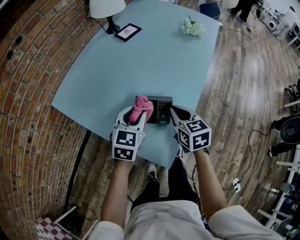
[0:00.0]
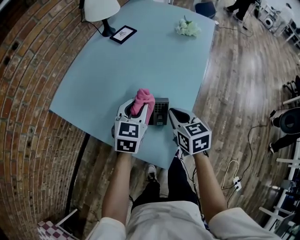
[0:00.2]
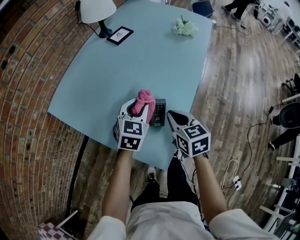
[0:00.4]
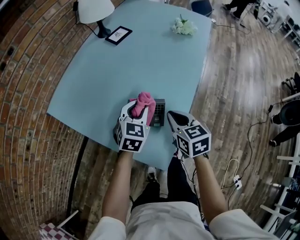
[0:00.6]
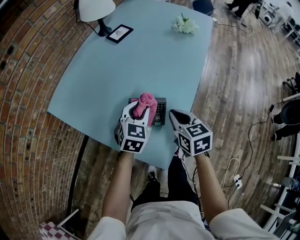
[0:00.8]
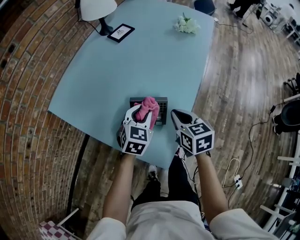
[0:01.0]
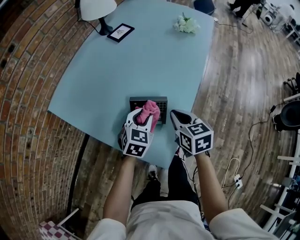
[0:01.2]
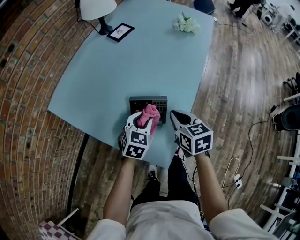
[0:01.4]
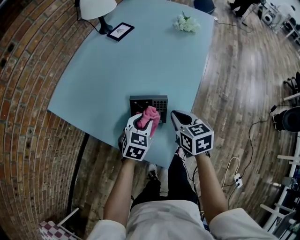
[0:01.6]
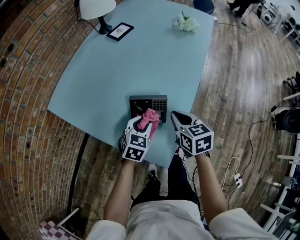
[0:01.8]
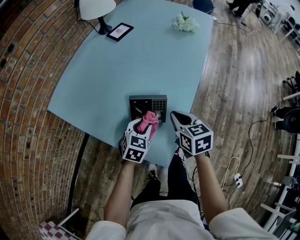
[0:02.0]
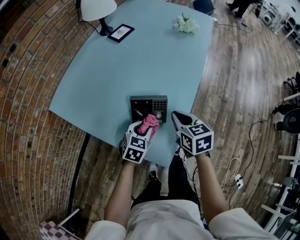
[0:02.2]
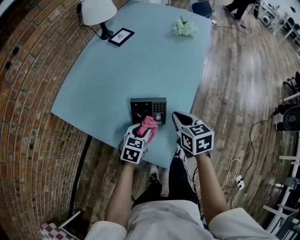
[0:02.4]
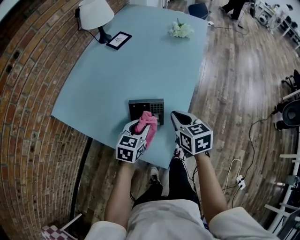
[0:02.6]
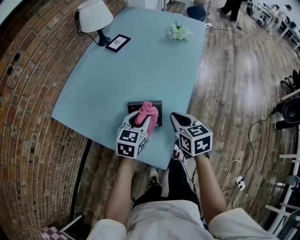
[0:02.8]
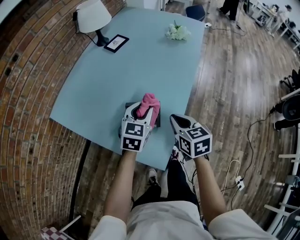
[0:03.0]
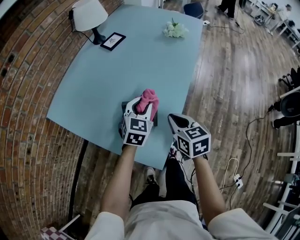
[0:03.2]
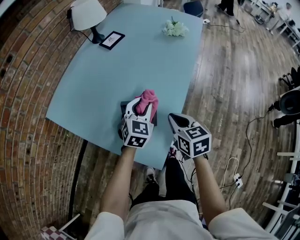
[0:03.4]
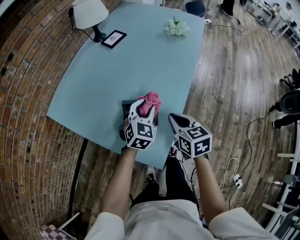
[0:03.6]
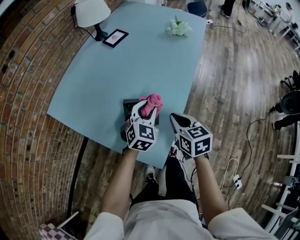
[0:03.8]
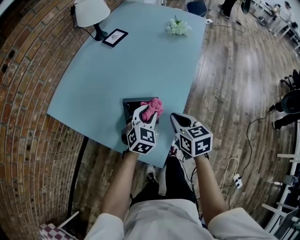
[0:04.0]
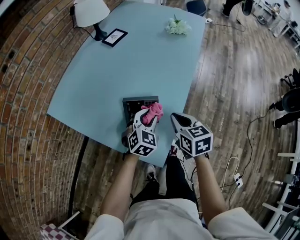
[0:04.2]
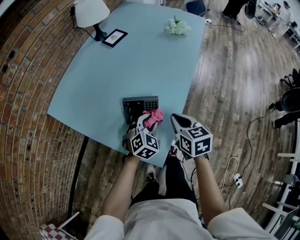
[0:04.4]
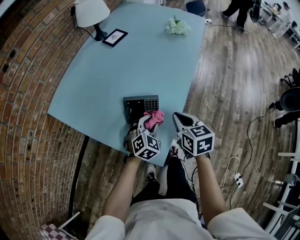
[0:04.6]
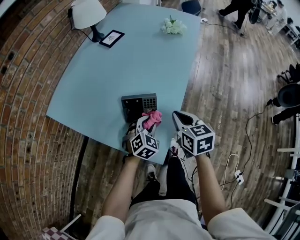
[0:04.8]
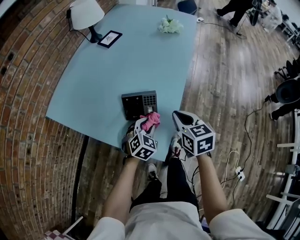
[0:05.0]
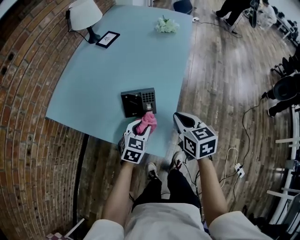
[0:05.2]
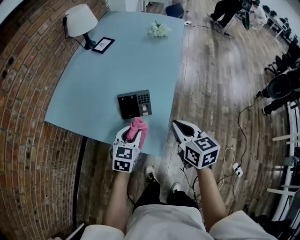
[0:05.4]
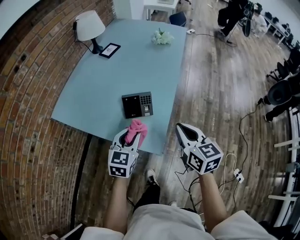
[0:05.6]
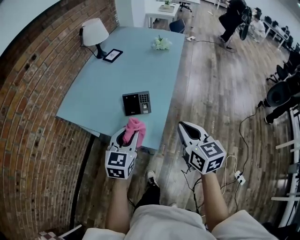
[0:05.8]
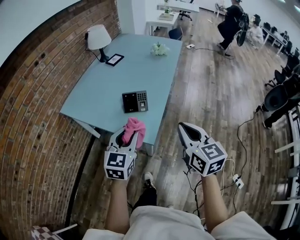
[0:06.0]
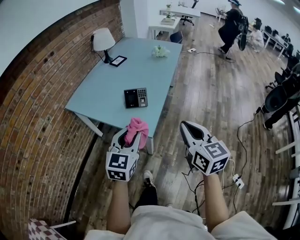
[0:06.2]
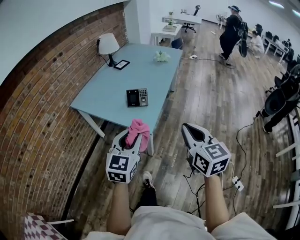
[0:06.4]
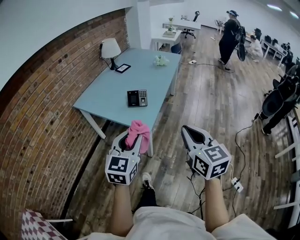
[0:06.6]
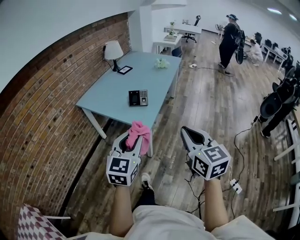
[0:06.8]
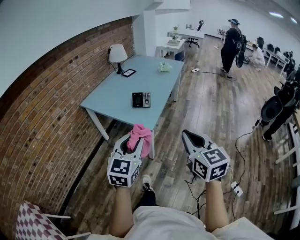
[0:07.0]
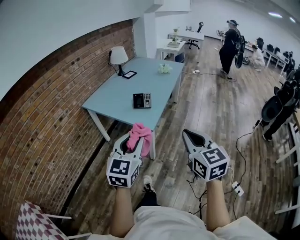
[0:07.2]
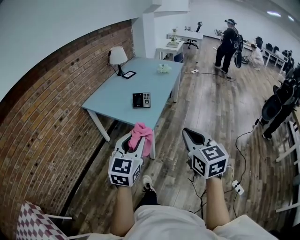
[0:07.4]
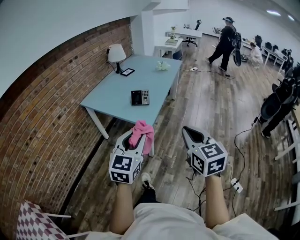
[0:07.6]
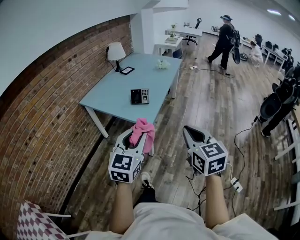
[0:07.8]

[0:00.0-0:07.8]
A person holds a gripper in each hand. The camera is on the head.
0:00.0 to 0:01.6: The left gripper moves downward, approximately 10 cm.
0:01.6 to 0:03.2: The left gripper travels upward and forward by approximately 10 cm.
0:03.2 to 0:04.6: The left gripper goes about 10 cm downward and backward, and changes its angle by roughly 20 degrees.
0:04.6 to 0:06.2: Both grippers move backward and upward, roughly 40 cm. The right gripper rotates about 30 degrees, while the left gripper turns by roughly 40 degrees.
0:06.2 to 0:07.8: Both grippers move backward, some 20 cm.

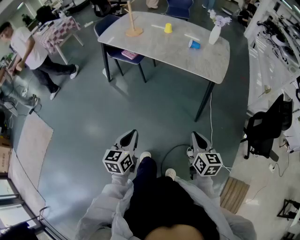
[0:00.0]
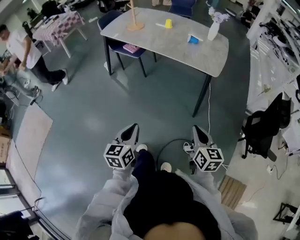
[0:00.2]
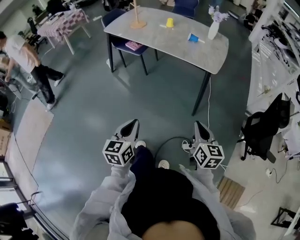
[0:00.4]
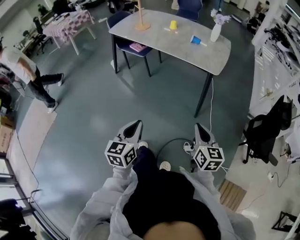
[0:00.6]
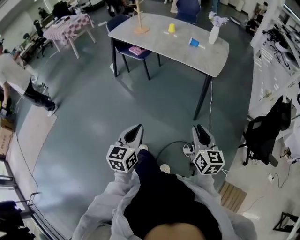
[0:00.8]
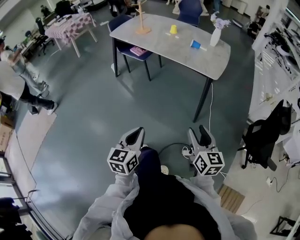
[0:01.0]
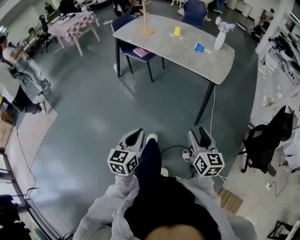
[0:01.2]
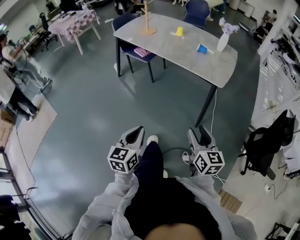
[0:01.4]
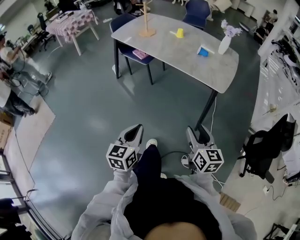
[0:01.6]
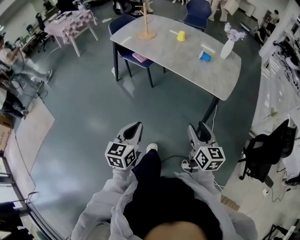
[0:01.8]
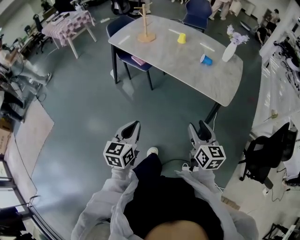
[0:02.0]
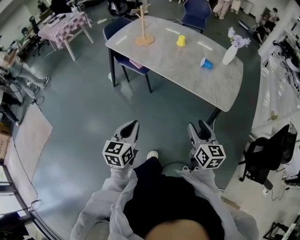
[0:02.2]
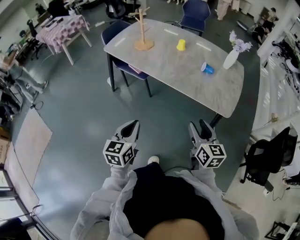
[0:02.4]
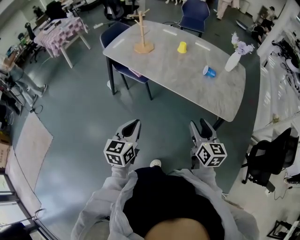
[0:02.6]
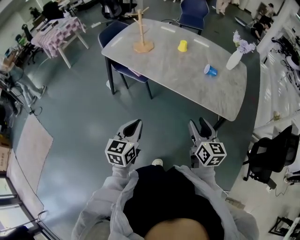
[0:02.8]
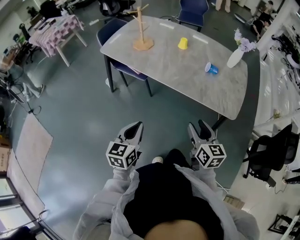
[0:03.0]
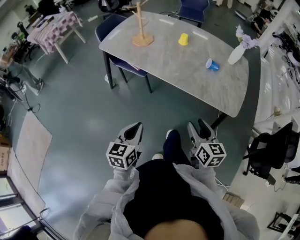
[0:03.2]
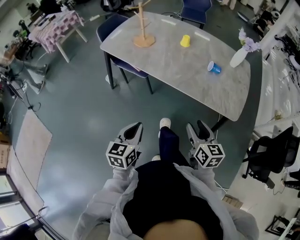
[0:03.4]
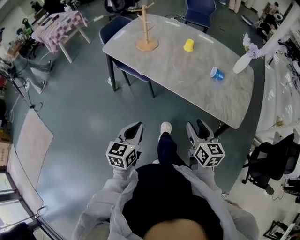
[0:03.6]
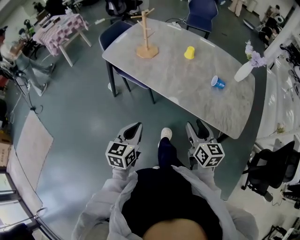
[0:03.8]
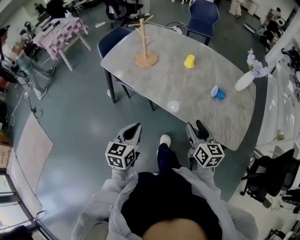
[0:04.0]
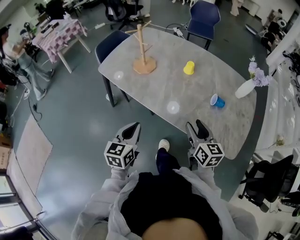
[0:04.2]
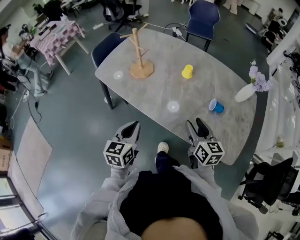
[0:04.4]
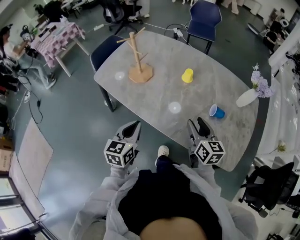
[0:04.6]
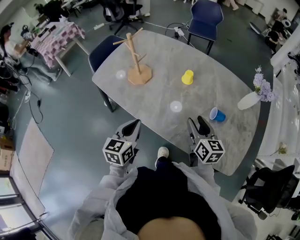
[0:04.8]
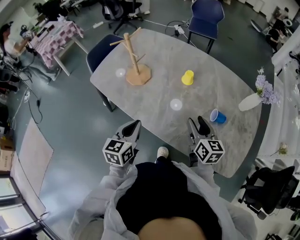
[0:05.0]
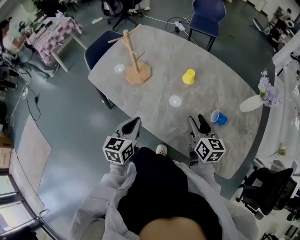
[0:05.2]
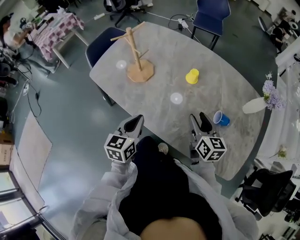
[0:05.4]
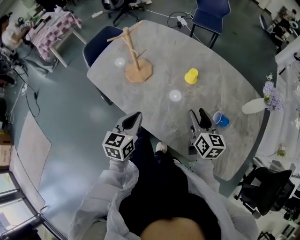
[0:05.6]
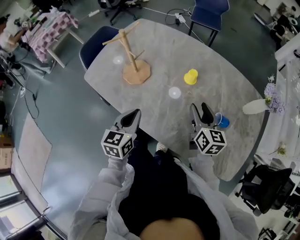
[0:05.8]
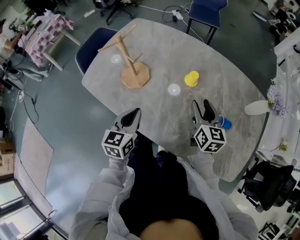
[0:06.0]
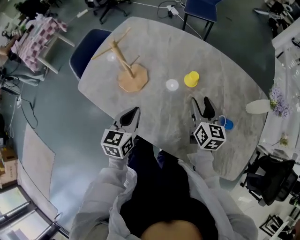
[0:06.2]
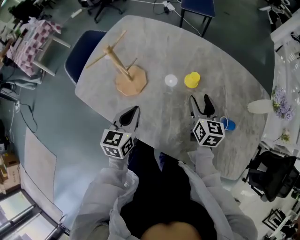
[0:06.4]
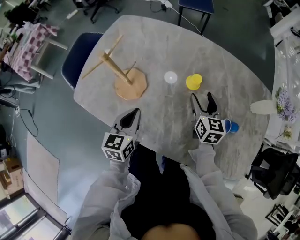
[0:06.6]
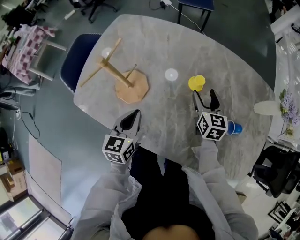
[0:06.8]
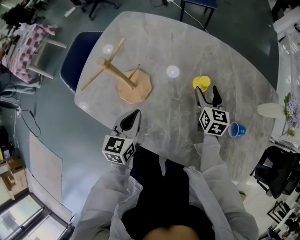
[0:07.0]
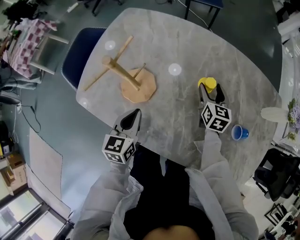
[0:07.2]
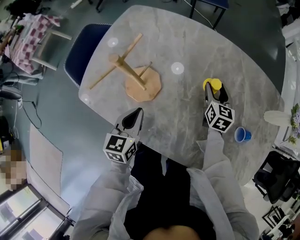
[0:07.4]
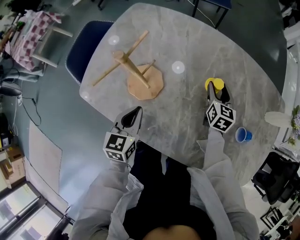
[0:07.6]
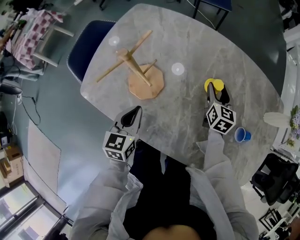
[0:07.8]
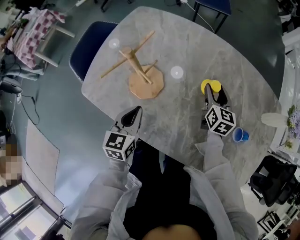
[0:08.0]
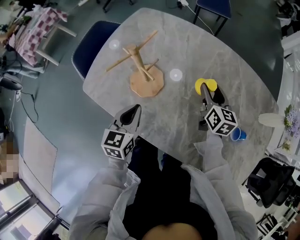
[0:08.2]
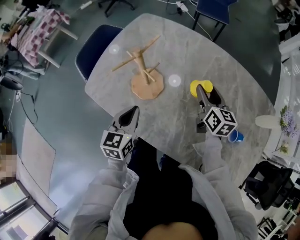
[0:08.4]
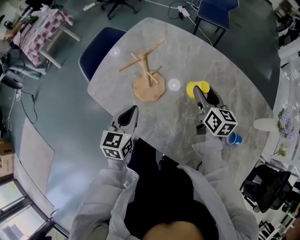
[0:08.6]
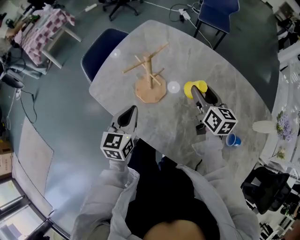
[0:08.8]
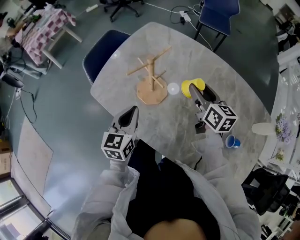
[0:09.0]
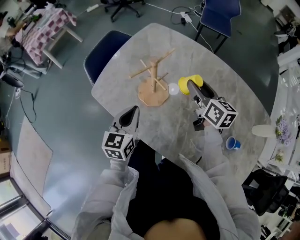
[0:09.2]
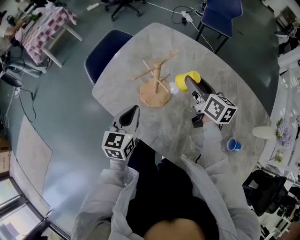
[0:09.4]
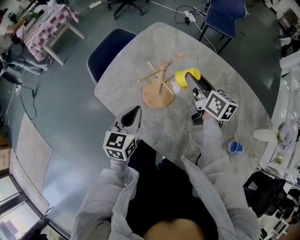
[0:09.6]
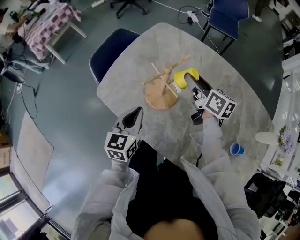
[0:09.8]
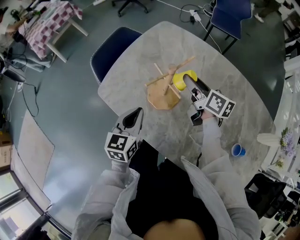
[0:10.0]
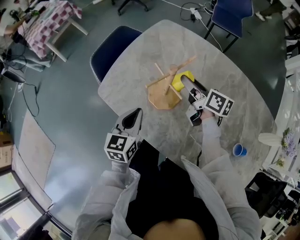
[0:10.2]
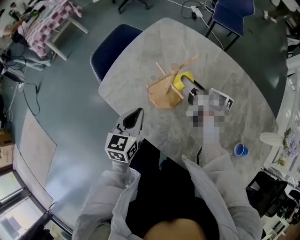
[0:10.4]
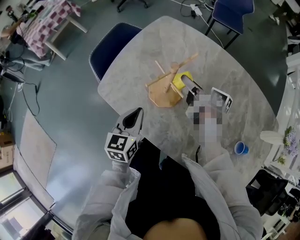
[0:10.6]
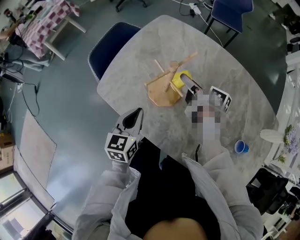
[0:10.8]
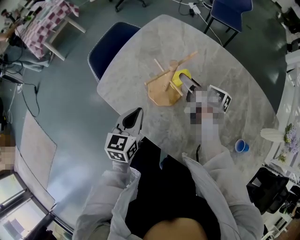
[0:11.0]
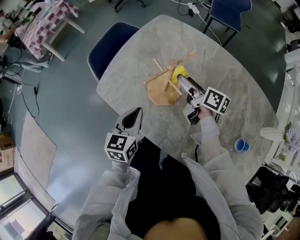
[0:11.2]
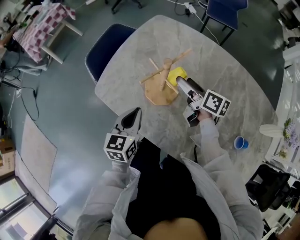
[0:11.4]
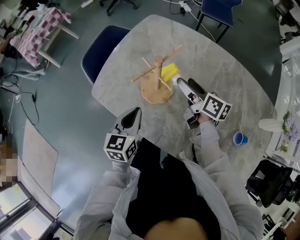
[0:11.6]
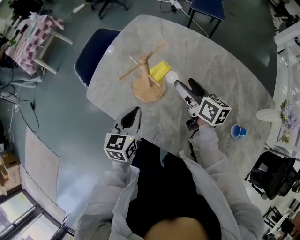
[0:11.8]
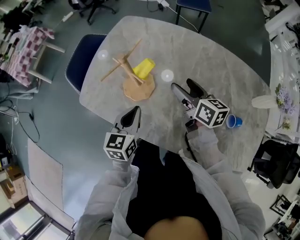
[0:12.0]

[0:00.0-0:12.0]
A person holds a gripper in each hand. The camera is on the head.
0:00.0 to 0:01.6: The right gripper travels backward and back again, approximately 10 cm each way, and opens up, while the left gripper heads to the right, covering roughly 5 cm, and moves some 10 cm backward and comes back.
0:01.6 to 0:03.0: The grippers both shift forward by approximately 25 cm.
0:03.0 to 0:04.4: Both grippers travel together forward, approximately 25 cm.
0:04.4 to 0:06.0: The two grippers go approximately 20 cm forward.
0:06.0 to 0:07.6: The left gripper travels forward, to the left and downward by about 15 cm, while the right gripper moves forward and downward, about 20 cm.
0:07.6 to 0:09.0: The left gripper moves upward, some 10 cm, while the right gripper moves upward and to the left, approximately 20 cm, and turns by approximately 30 degrees.
0:09.0 to 0:10.4: The right gripper is displaced to the left and forward by roughly 10 cm, and changes its angle by some 30 degrees, while the left gripper shifts by roughly 5 cm.
0:10.4 to 0:12.0: The left gripper heads to the right, covering about 10 cm. The right gripper is displaced backward and to the right by approximately 15 cm, and rotates approximately 20 degrees.

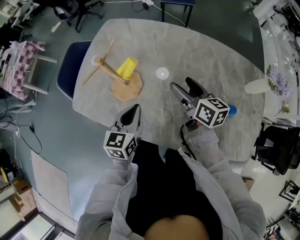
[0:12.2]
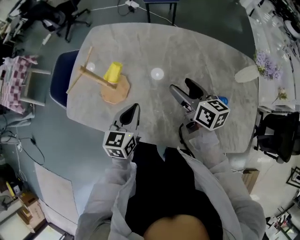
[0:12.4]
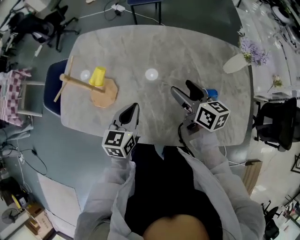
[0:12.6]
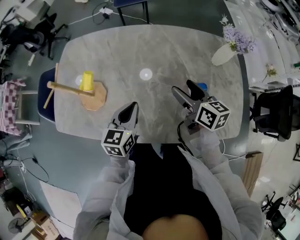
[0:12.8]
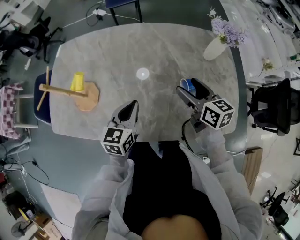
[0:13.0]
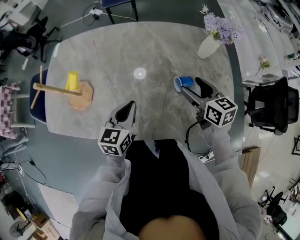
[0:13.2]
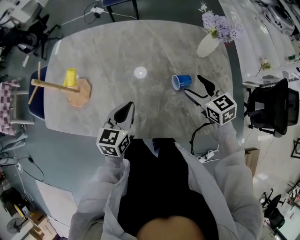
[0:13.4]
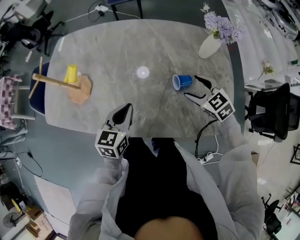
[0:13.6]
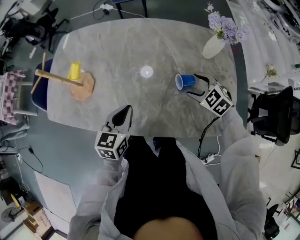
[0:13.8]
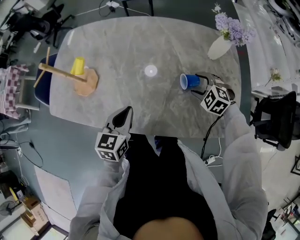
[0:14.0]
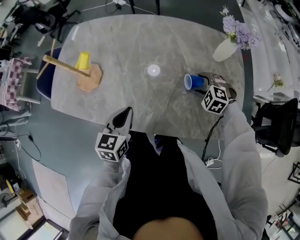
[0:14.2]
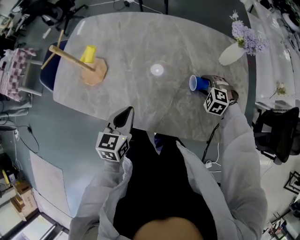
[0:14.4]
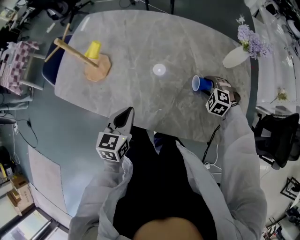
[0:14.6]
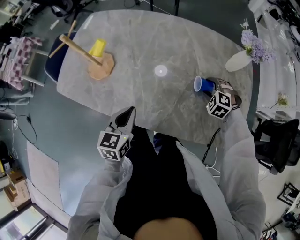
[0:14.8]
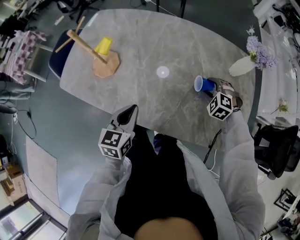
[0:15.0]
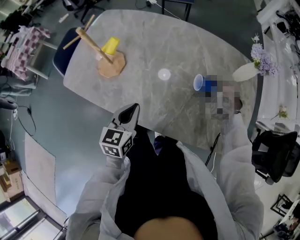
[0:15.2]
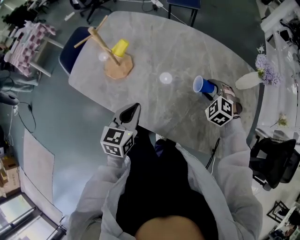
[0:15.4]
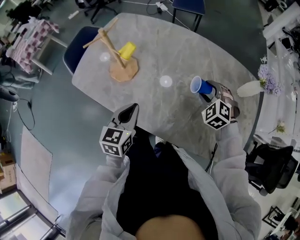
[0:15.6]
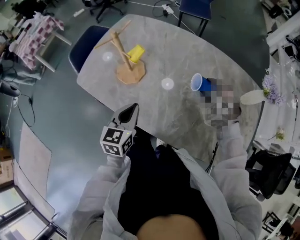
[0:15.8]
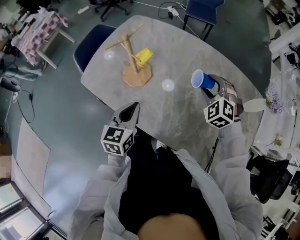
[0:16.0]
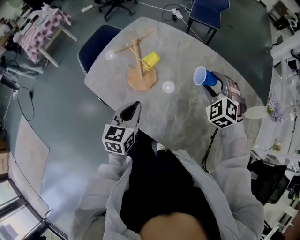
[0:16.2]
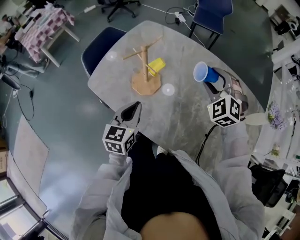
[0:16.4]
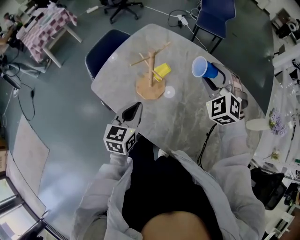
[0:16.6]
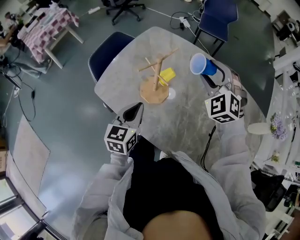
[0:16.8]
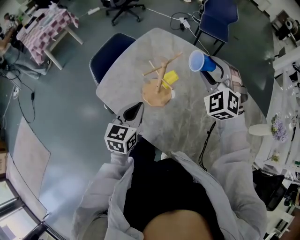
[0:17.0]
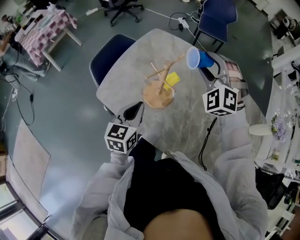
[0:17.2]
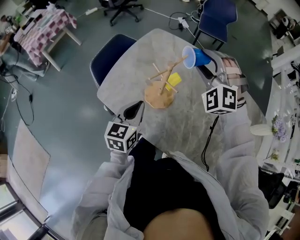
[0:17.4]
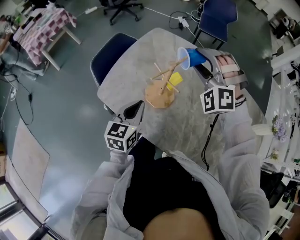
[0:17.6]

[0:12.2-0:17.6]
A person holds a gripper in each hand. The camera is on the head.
0:12.2 to 0:13.6: Both grippers travel together to the right, about 30 cm. The right gripper rolls counterclockwise, seen from behind, by roughly 40 degrees.
0:13.6 to 0:15.0: The left gripper heads to the left, covering approximately 5 cm. The right gripper is displaced downward by roughly 5 cm, and twists roughly 40 degrees counterclockwise, seen from behind.
0:15.0 to 0:16.2: The right gripper goes about 35 cm to the left, upward and forward, and changes its angle by approximately 20 degrees. The left gripper moves to the left and forward, roughly 20 cm.
0:16.2 to 0:17.6: The left gripper goes some 15 cm to the left and forward. Meanwhile the right gripper heads to the left, upward and forward, covering roughly 25 cm, and swivels roughly 30 degrees.
